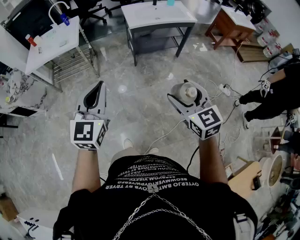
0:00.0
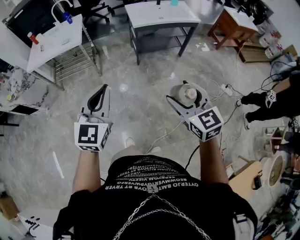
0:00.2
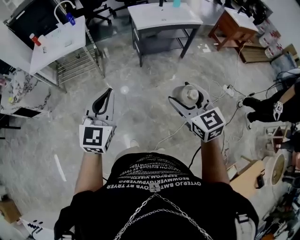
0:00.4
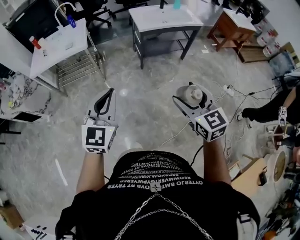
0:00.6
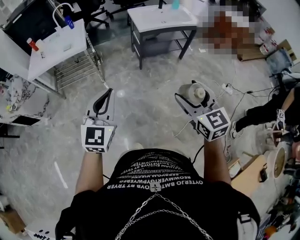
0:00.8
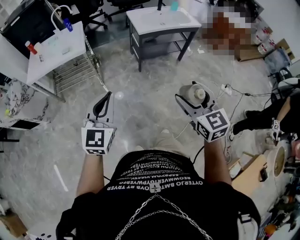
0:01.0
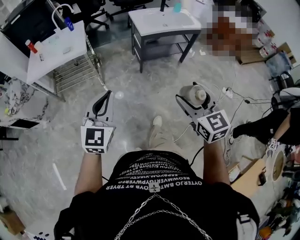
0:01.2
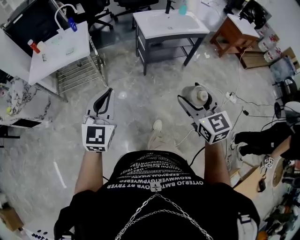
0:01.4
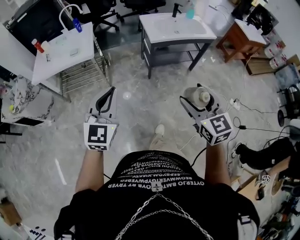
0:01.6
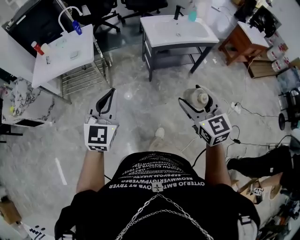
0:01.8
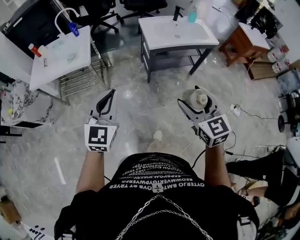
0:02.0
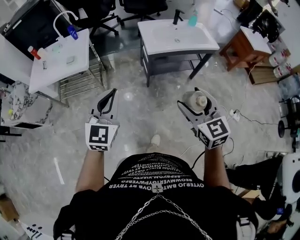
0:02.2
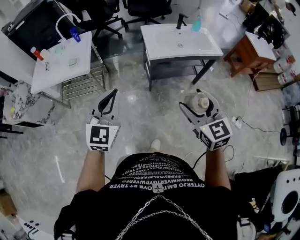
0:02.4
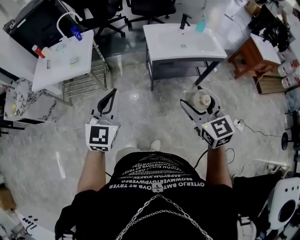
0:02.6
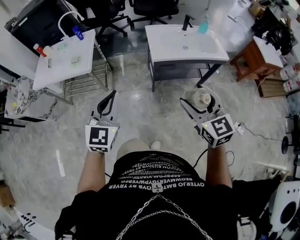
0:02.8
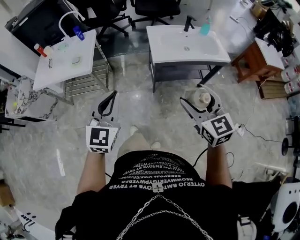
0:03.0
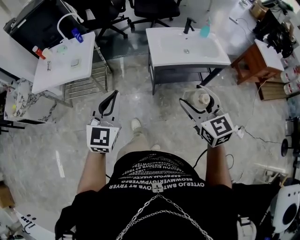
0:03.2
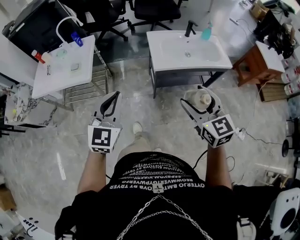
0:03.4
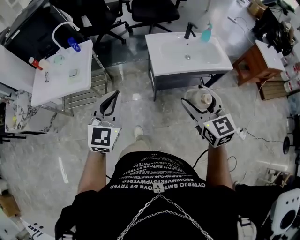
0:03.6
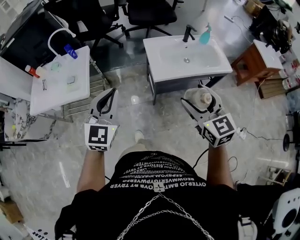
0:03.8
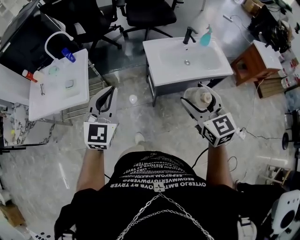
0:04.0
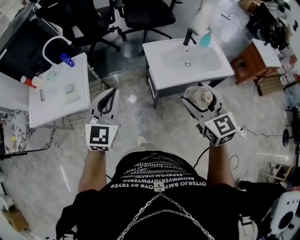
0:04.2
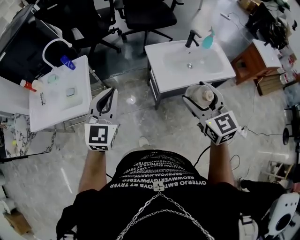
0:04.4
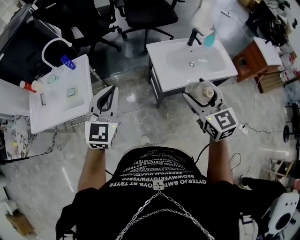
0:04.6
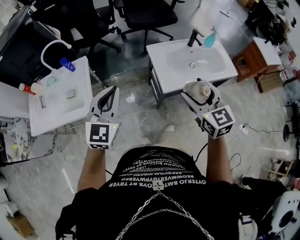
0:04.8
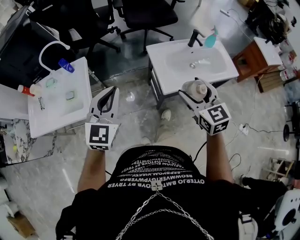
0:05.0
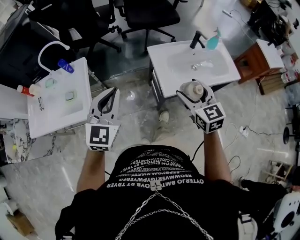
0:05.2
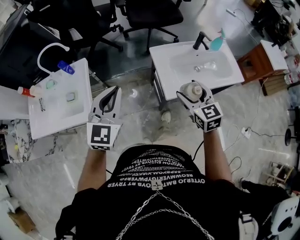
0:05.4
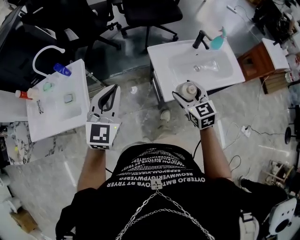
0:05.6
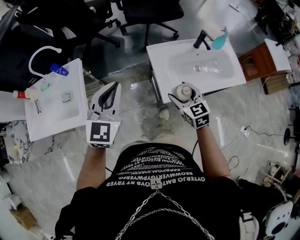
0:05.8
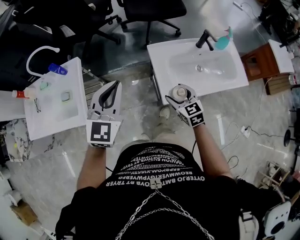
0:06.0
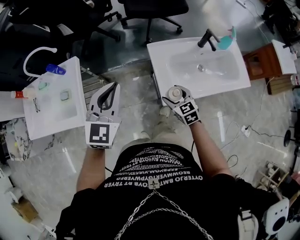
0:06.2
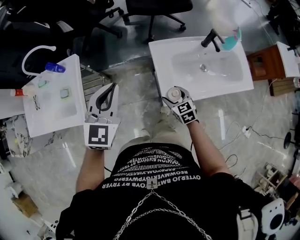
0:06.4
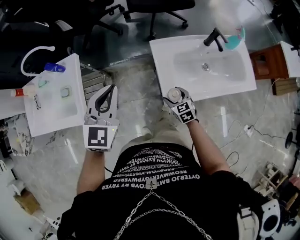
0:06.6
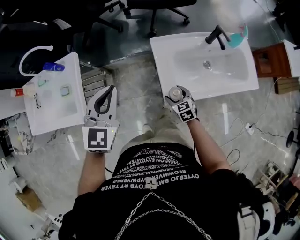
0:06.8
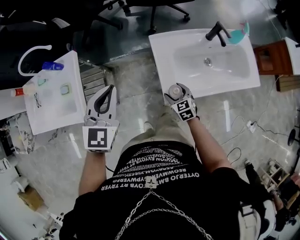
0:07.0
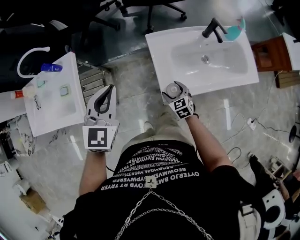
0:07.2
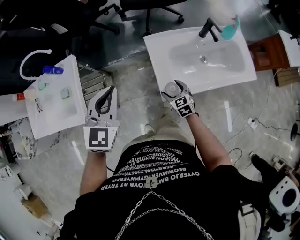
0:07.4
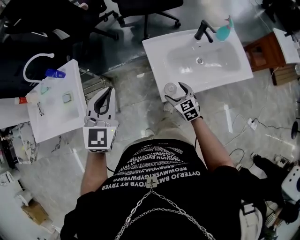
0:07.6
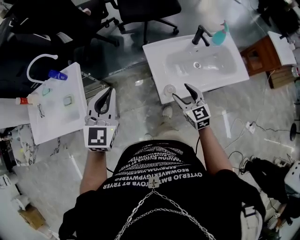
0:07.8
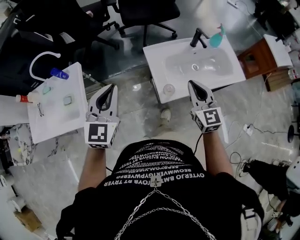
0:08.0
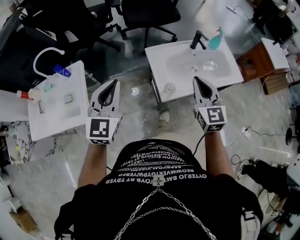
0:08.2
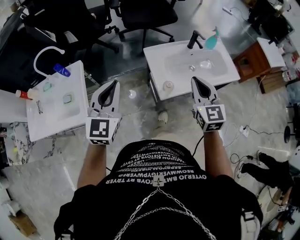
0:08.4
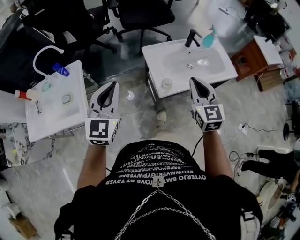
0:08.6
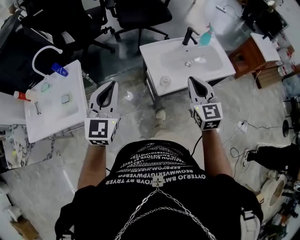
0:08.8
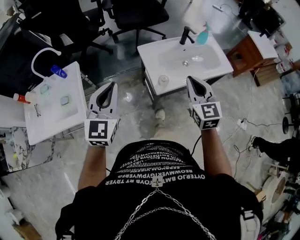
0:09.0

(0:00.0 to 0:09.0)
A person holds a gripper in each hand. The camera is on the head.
0:00.0 - 0:01.6: The two grippers go approximately 20 cm forward and to the left.
0:01.6 - 0:03.0: Both grippers travel together forward and to the right, some 25 cm.
0:03.0 - 0:04.4: The grippers both shift forward by roughly 30 cm.
0:04.4 - 0:06.0: The left gripper shifts approximately 20 cm forward; the right gripper heads downward and forward, covering approximately 35 cm, and changes its angle by about 20 degrees.
0:06.0 - 0:07.6: The right gripper heads downward, covering some 10 cm.
0:07.6 - 0:09.0: The left gripper travels backward and upward by about 15 cm. Meanwhile the right gripper moves upward and backward, approximately 35 cm, turns by some 30 degrees, and closes up.

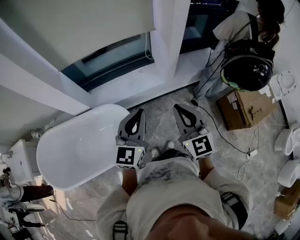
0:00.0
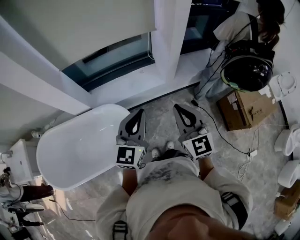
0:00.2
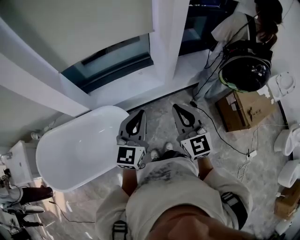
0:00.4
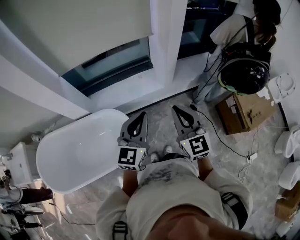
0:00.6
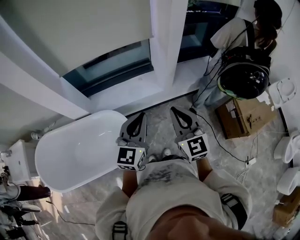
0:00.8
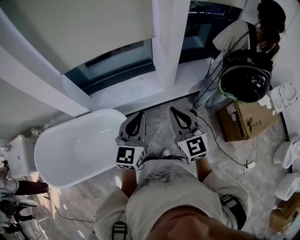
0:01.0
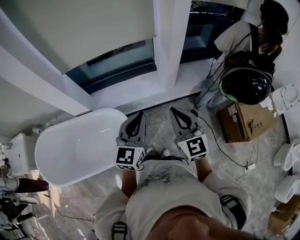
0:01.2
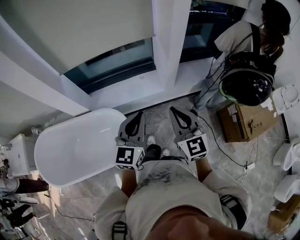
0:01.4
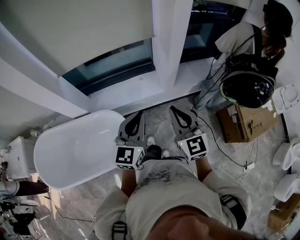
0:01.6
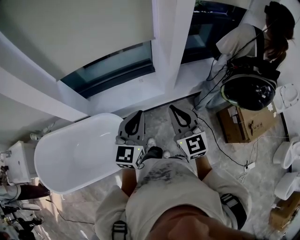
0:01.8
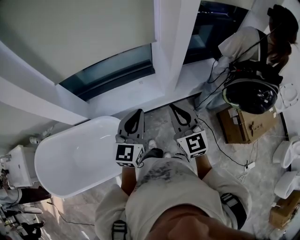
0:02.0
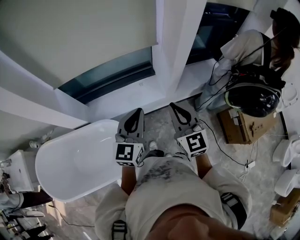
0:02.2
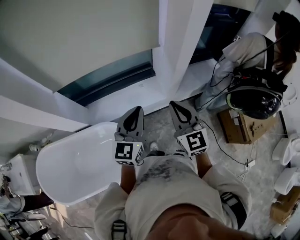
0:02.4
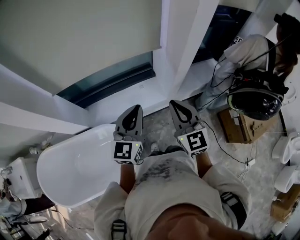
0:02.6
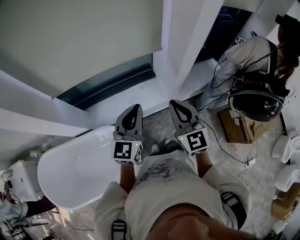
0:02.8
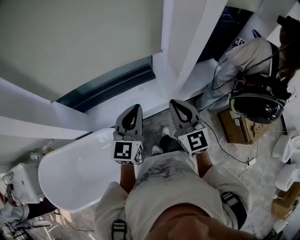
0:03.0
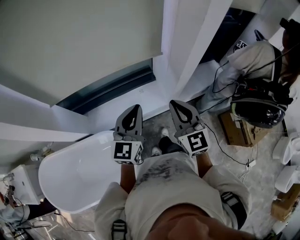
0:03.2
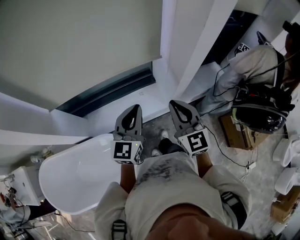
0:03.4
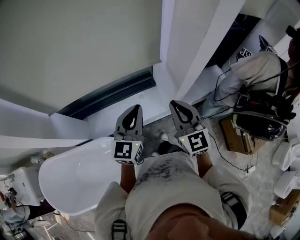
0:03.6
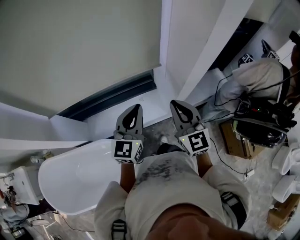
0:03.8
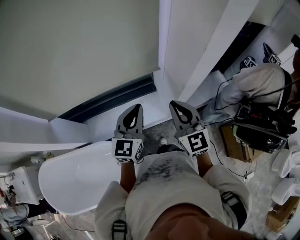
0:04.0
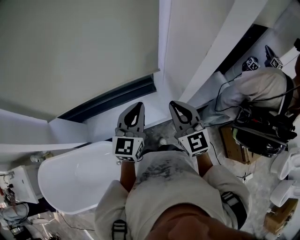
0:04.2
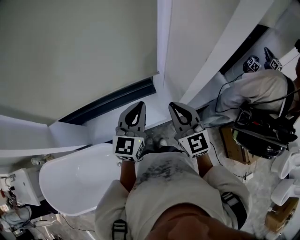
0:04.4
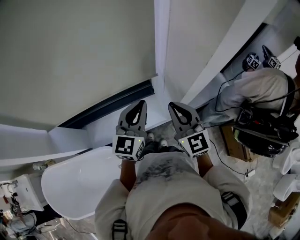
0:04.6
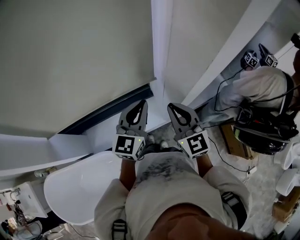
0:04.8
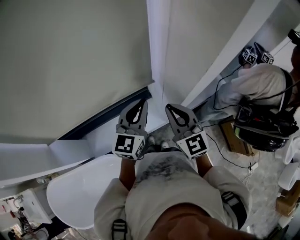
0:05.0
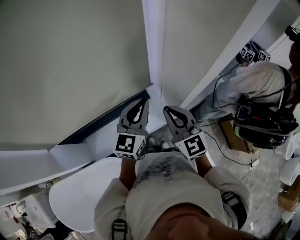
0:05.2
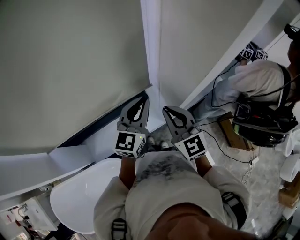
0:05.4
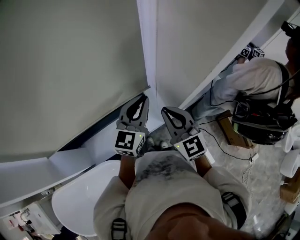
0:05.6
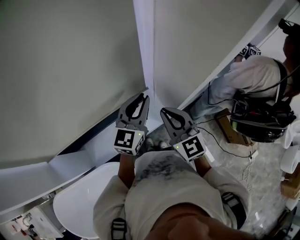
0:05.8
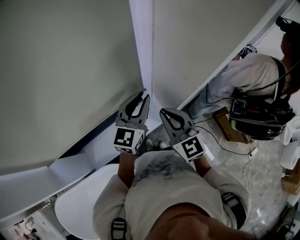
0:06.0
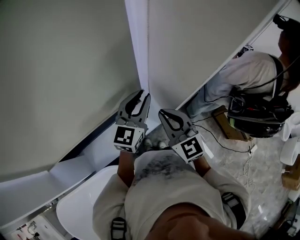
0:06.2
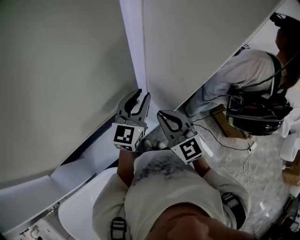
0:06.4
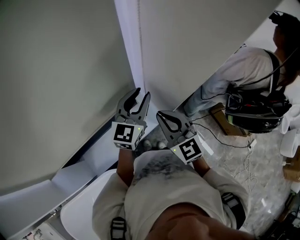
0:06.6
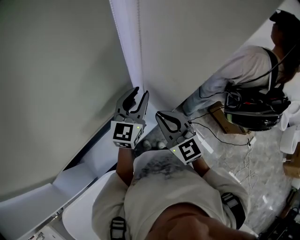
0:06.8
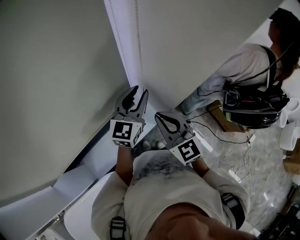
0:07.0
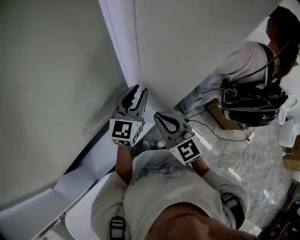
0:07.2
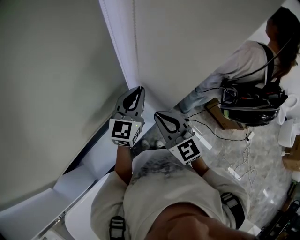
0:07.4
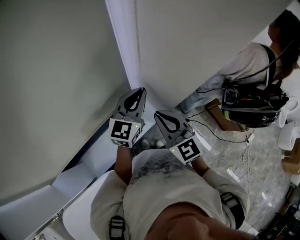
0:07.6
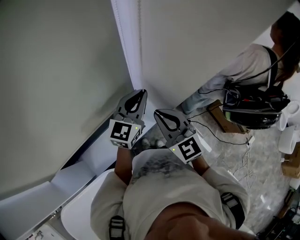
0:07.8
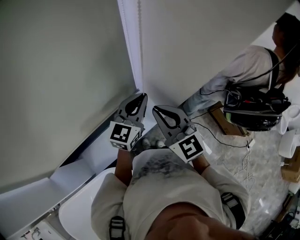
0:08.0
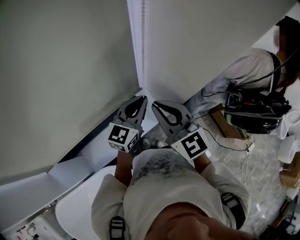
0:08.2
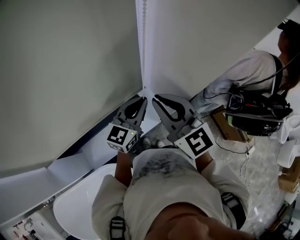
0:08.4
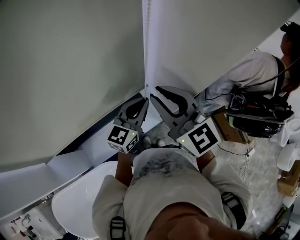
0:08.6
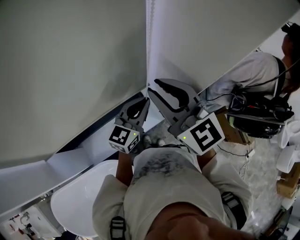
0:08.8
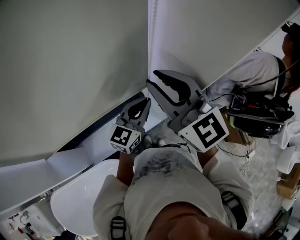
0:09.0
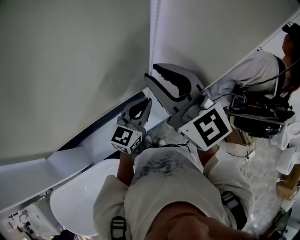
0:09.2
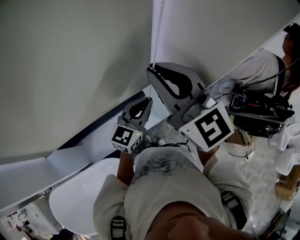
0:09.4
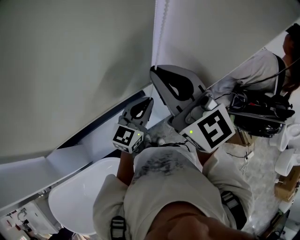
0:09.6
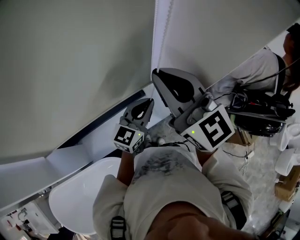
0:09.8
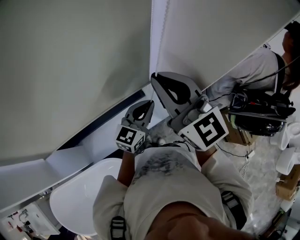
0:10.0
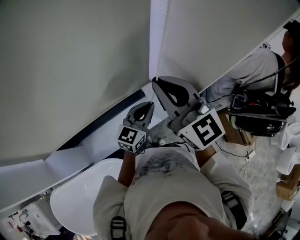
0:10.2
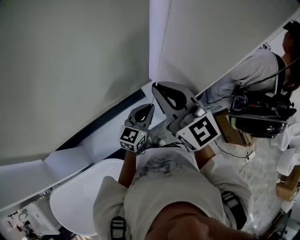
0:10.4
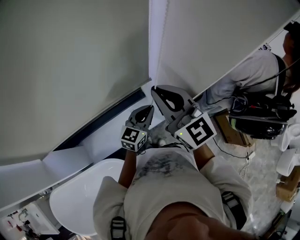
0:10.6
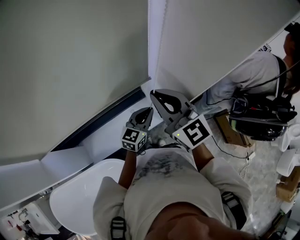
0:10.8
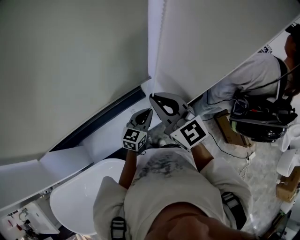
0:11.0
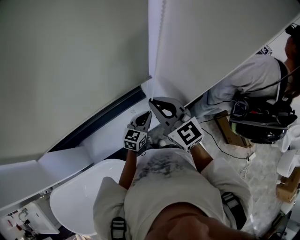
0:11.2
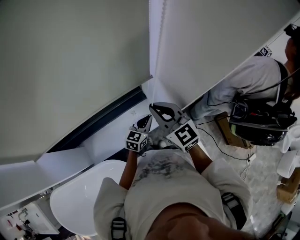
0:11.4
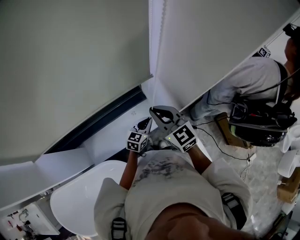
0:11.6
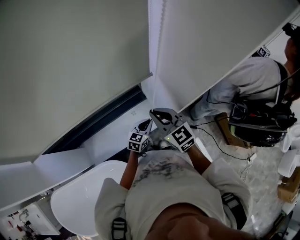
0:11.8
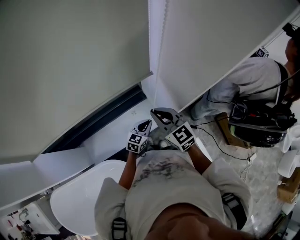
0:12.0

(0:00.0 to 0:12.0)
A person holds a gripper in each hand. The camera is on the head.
0:00.0 - 0:01.6: The left gripper ends up about 5 cm from where it was; the right gripper goes approximately 5 cm forward.
0:01.6 - 0:03.0: Both grippers move forward, some 20 cm.
0:03.0 - 0:04.4: The right gripper moves forward, some 15 cm. The left gripper heads forward and to the right, covering approximately 20 cm.
0:04.4 - 0:06.0: The left gripper heads forward and to the right, covering approximately 10 cm, and changes its angle by some 20 degrees.
0:06.0 - 0:07.6: There are only small adjustments of the grippers.
0:07.6 - 0:09.0: The right gripper heads upward, covering some 15 cm, and changes its angle by some 20 degrees; the left gripper travels backward by about 10 cm.
0:09.0 - 0:10.4: The left gripper moves downward, about 5 cm; the right gripper shifts by some 5 cm.
0:10.4 - 0:12.0: The grippers both shift downward by approximately 20 cm.

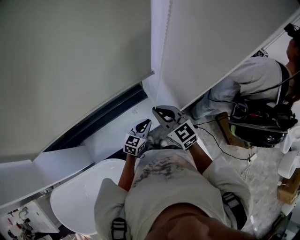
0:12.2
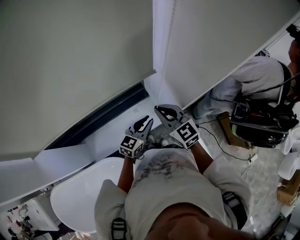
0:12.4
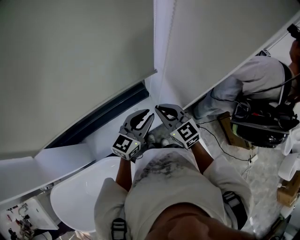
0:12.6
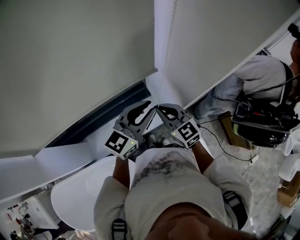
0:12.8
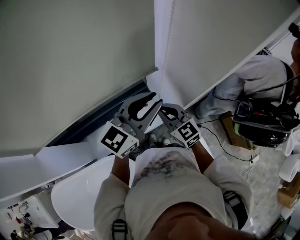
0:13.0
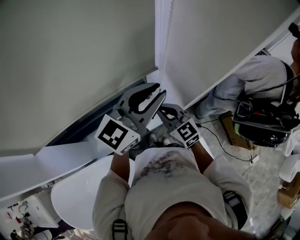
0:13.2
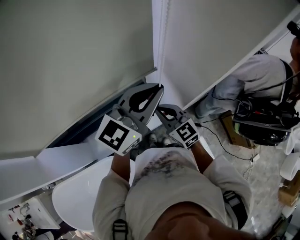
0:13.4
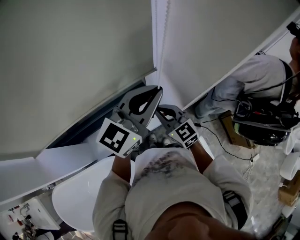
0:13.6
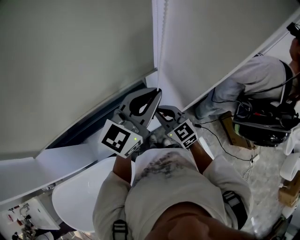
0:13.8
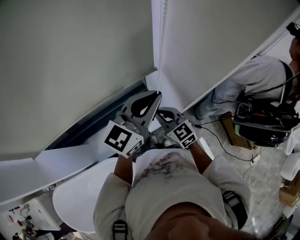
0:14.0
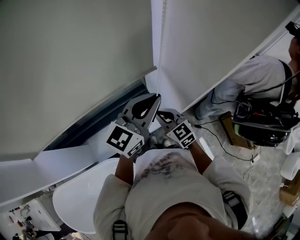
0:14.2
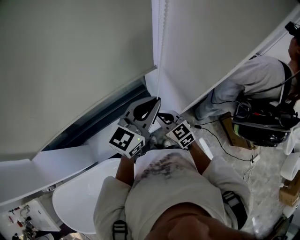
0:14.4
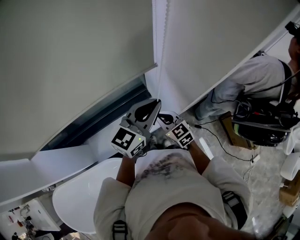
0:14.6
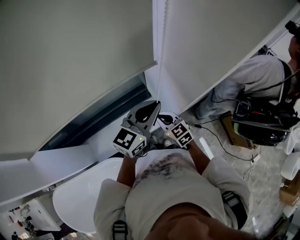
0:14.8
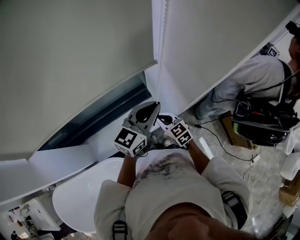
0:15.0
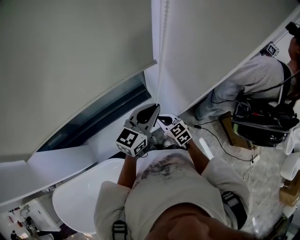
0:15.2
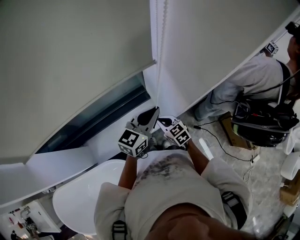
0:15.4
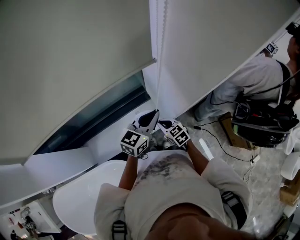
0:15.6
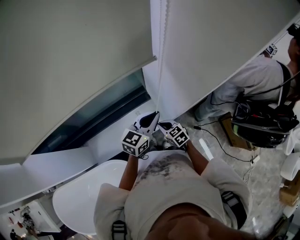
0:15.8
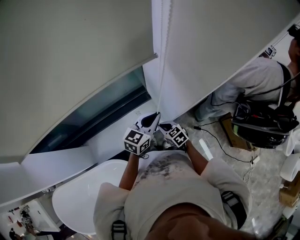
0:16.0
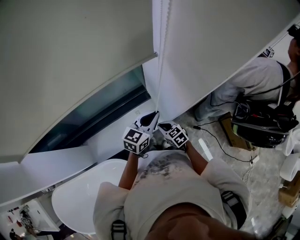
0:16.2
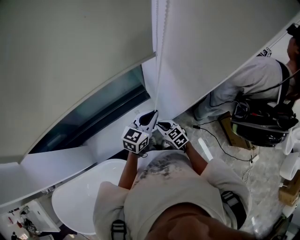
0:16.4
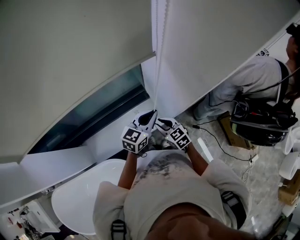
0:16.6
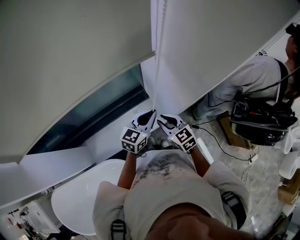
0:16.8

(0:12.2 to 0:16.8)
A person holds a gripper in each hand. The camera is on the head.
0:12.2 - 0:13.8: The left gripper shifts approximately 35 cm upward, and rotates some 30 degrees.
0:13.8 - 0:15.2: Both grippers move downward, about 10 cm.
0:15.2 - 0:16.8: The right gripper goes downward and returns, roughly 10 cm each way. Meanwhile the left gripper travels downward by approximately 10 cm.
